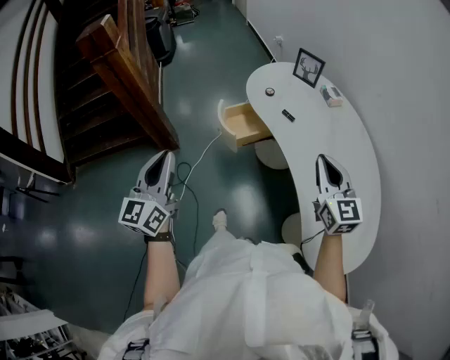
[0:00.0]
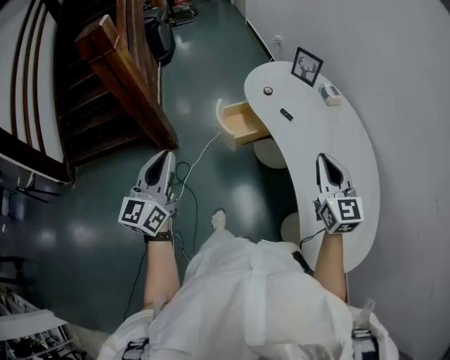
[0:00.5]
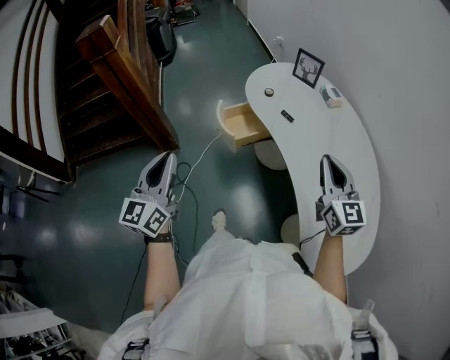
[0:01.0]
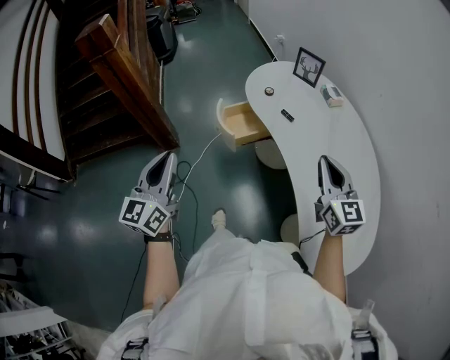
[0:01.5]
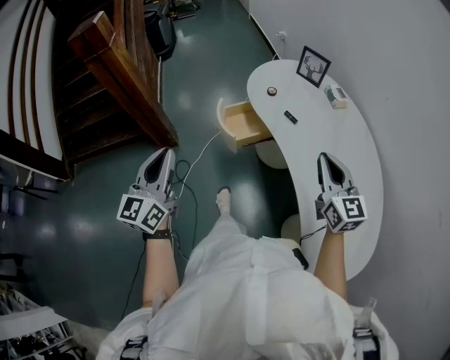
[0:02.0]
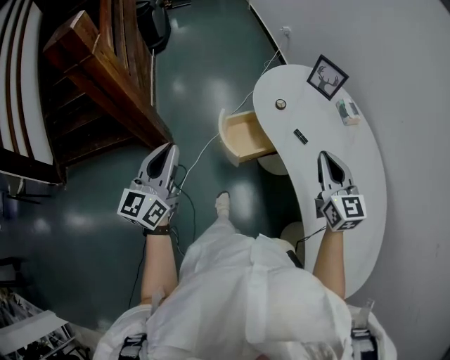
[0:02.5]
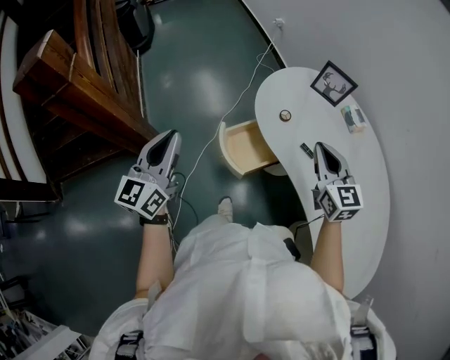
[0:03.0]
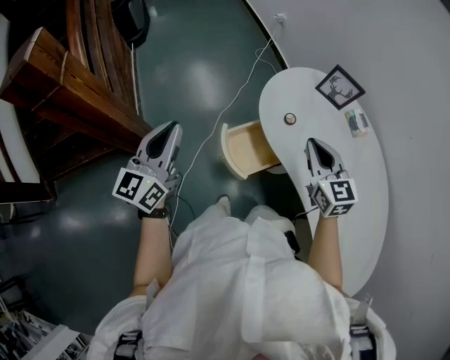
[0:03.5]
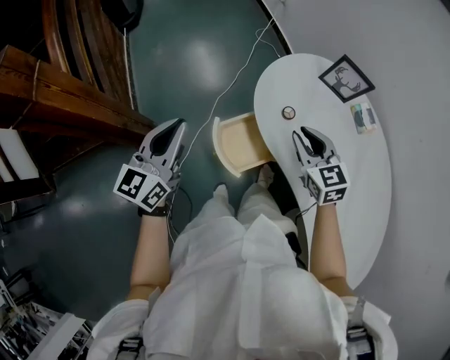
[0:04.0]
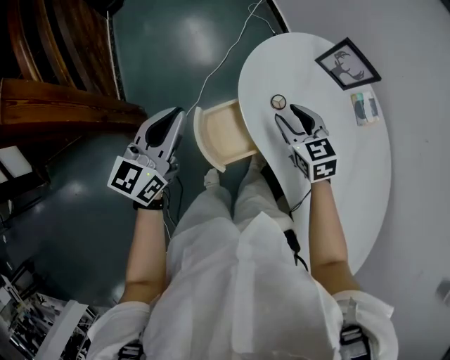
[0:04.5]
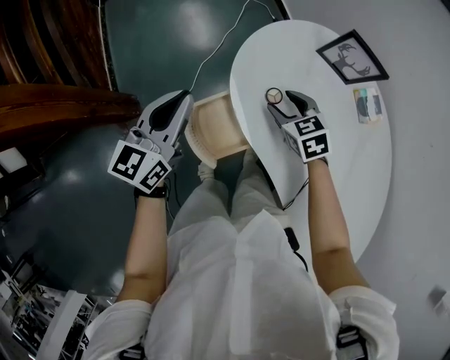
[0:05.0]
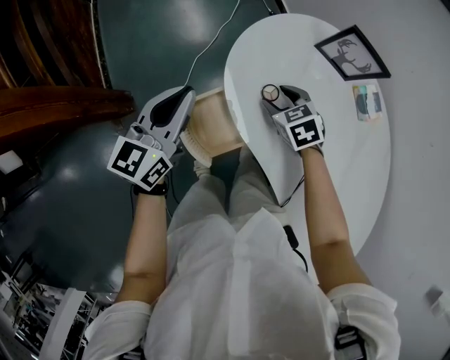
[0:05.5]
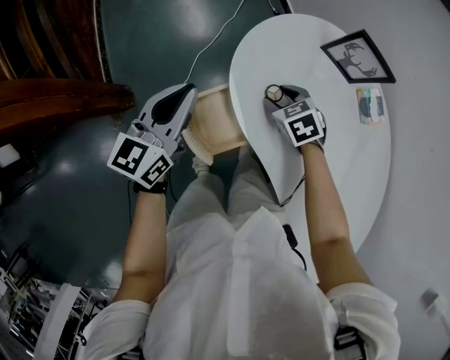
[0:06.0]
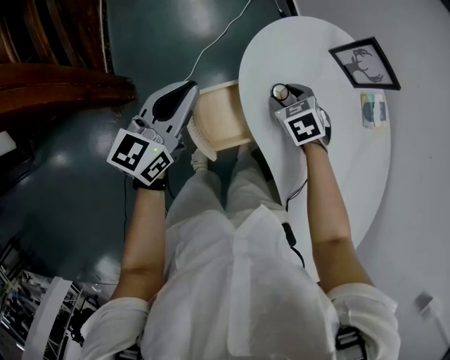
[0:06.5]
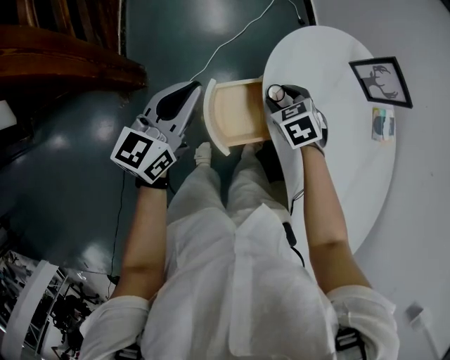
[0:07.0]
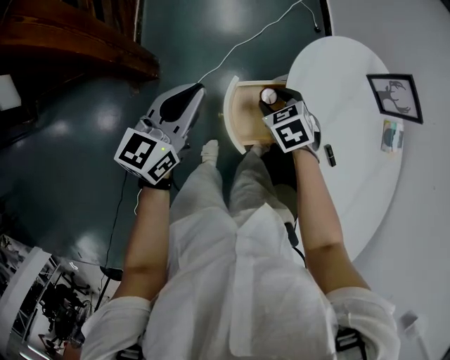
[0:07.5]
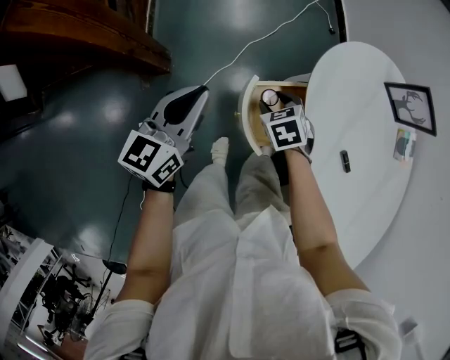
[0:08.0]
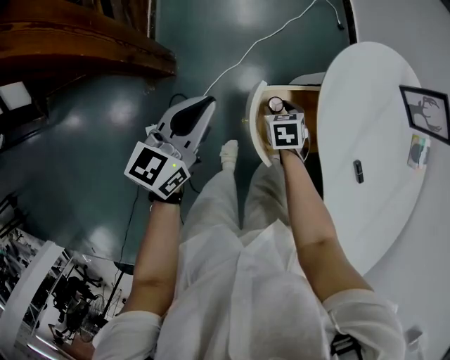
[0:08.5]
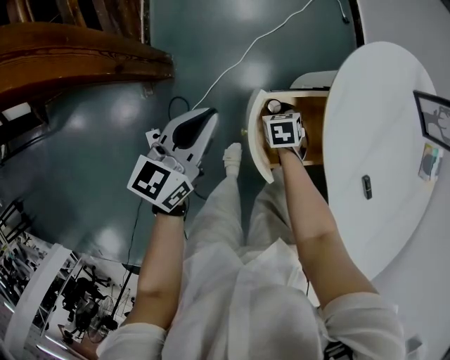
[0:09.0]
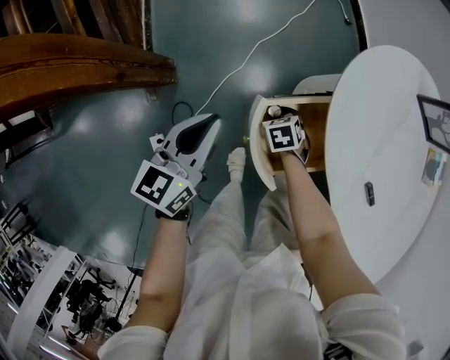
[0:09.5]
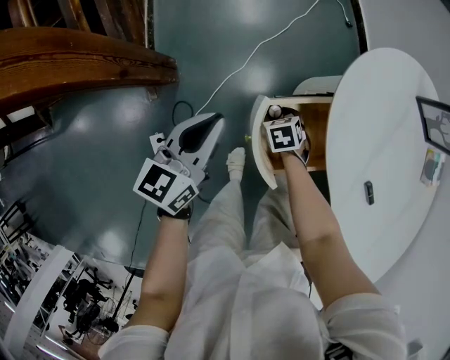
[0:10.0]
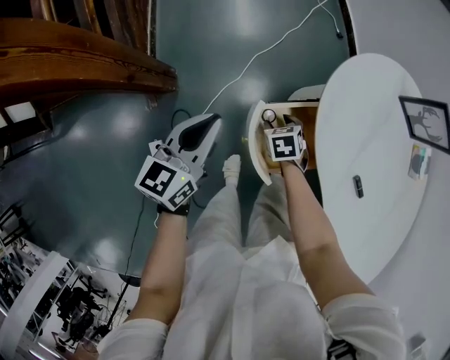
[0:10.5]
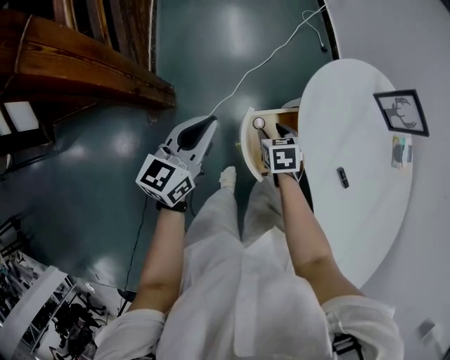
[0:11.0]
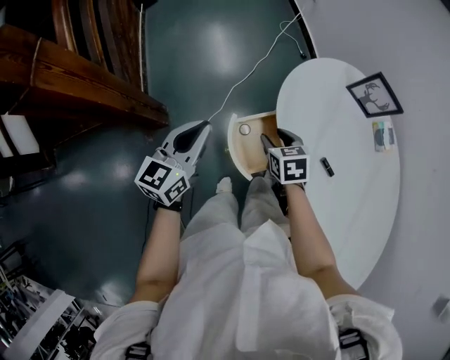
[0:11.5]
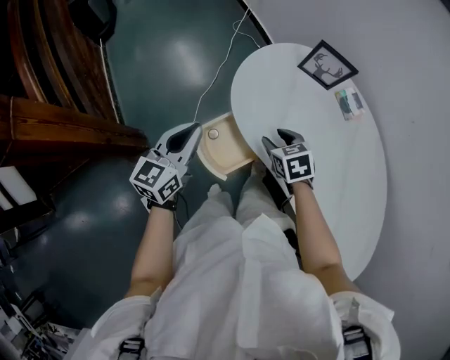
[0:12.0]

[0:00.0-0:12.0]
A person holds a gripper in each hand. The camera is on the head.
0:00.0 to 0:02.0: The right gripper ends up approximately 5 cm from where it was; the left gripper changes place by about 5 cm.
0:02.0 to 0:04.0: The left gripper is displaced forward by approximately 40 cm. The right gripper travels forward and to the left by roughly 40 cm, and swivels some 20 degrees.
0:04.0 to 0:06.0: The right gripper travels downward and forward by some 20 cm, tips its fingers downward by some 30 degrees, and opens. The left gripper moves to the right, forward and downward, some 15 cm.
0:06.0 to 0:08.0: The left gripper heads to the left and backward, covering some 20 cm; the right gripper shifts roughly 20 cm to the left.
0:08.0 to 0:10.0: The left gripper shifts about 10 cm downward; the right gripper goes roughly 20 cm downward.
0:10.0 to 0:12.0: The left gripper heads upward and to the right, covering about 20 cm, and rotates roughly 20 degrees; the right gripper goes some 35 cm upward and to the right, and turns by roughly 20 degrees.

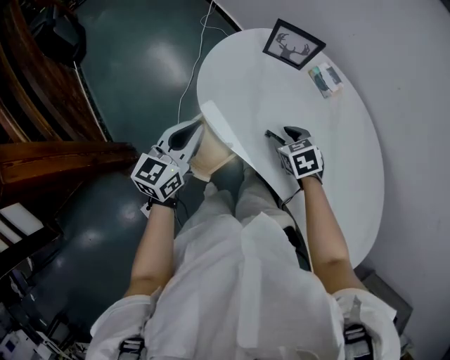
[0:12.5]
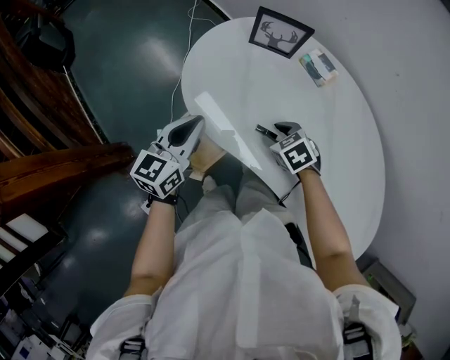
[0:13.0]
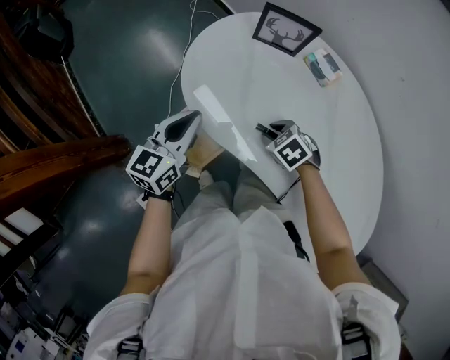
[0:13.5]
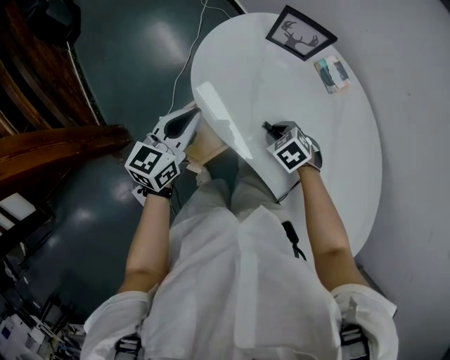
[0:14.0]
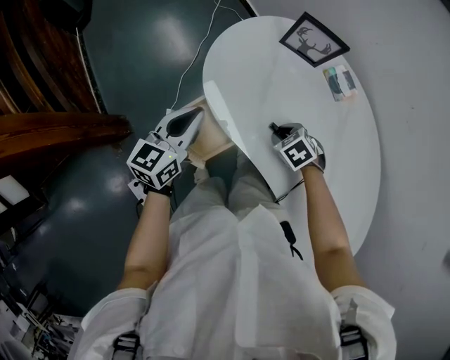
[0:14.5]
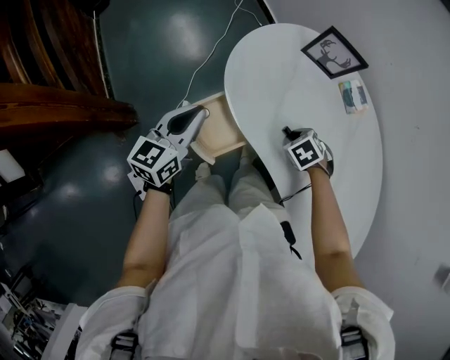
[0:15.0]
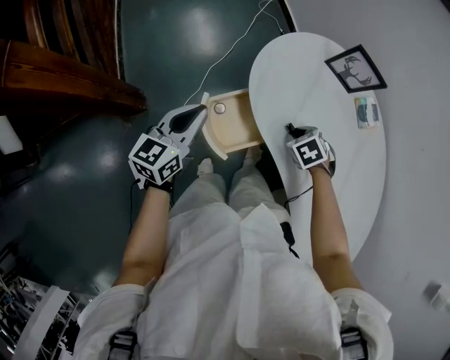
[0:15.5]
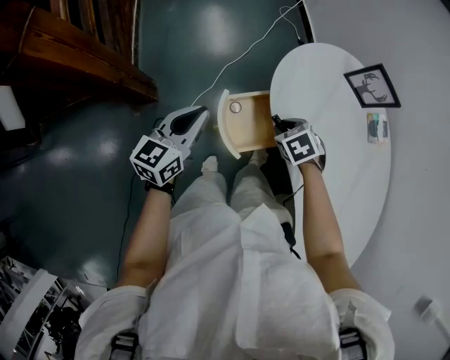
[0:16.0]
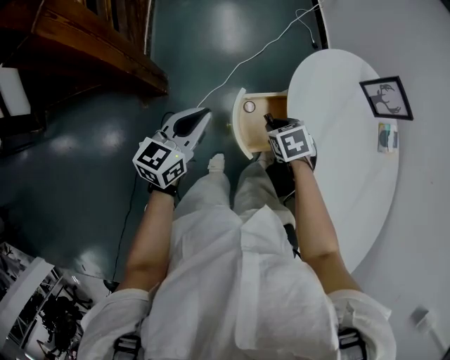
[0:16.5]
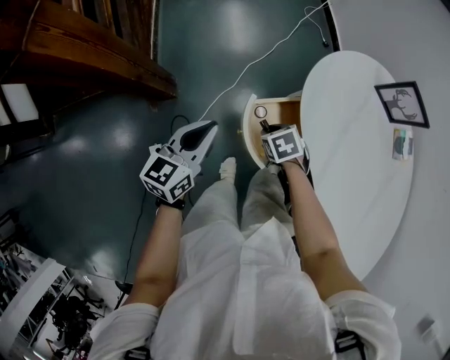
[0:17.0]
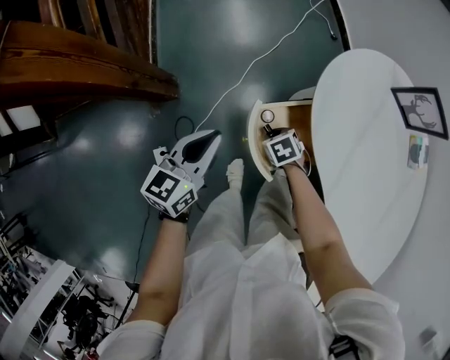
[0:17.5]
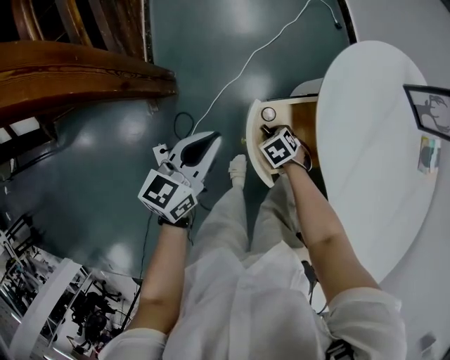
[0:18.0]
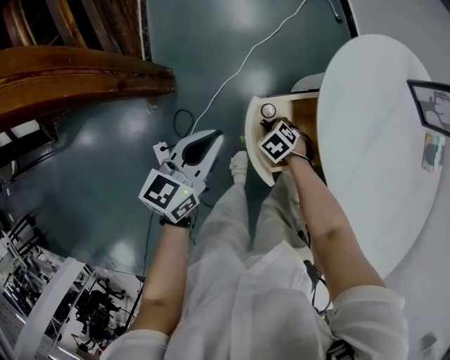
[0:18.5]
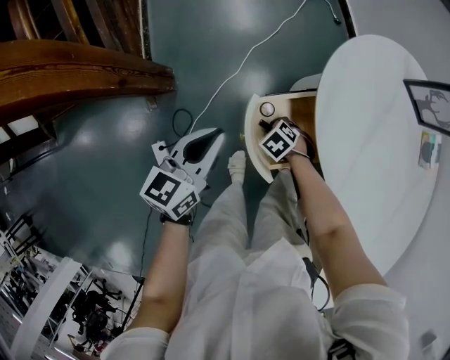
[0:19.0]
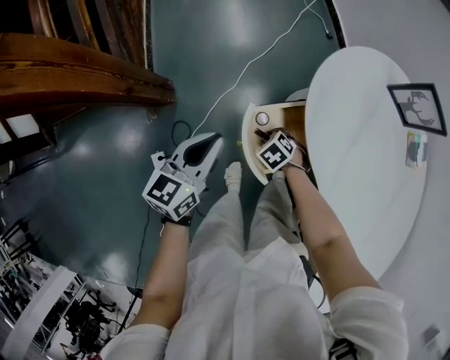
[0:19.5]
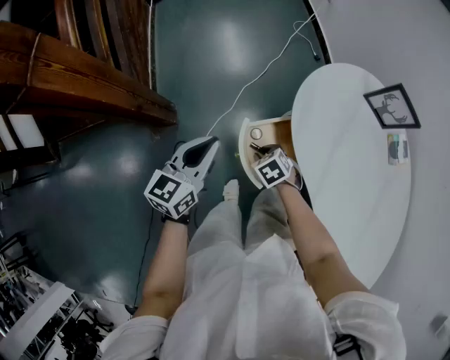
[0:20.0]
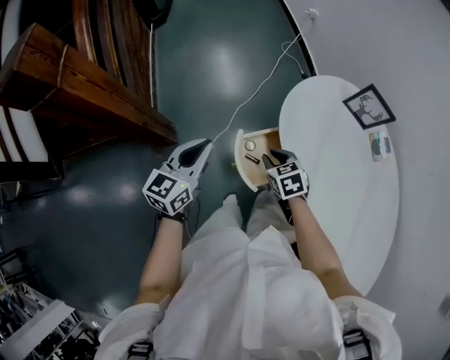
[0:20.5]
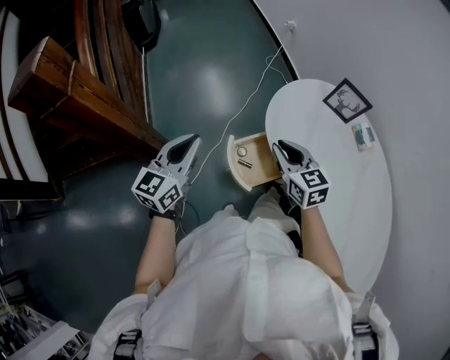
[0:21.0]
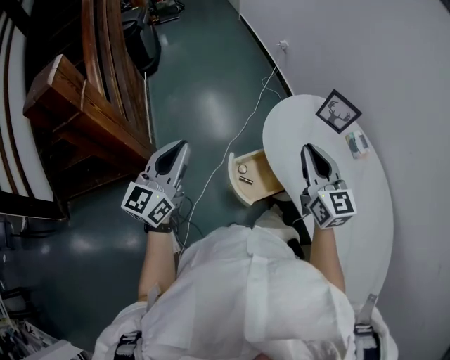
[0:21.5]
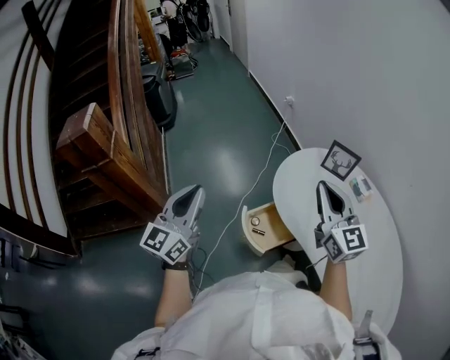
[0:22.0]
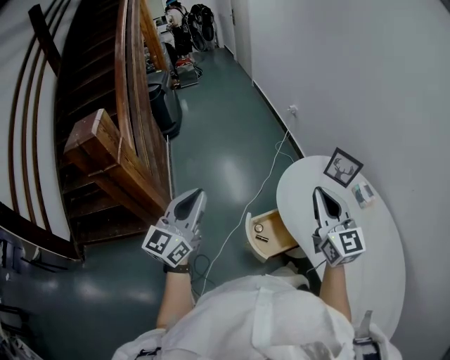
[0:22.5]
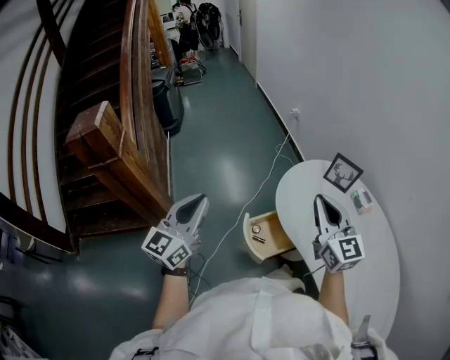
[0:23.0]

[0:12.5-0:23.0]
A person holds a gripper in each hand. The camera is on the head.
0:12.5 to 0:14.5: The right gripper travels downward by approximately 5 cm, changes its angle by some 30 degrees, and closes.
0:14.5 to 0:16.5: The right gripper ends up approximately 25 cm from where it was. The left gripper shifts by some 20 cm, and swivels about 20 degrees.
0:16.5 to 0:19.0: The left gripper travels downward by some 10 cm. The right gripper is displaced downward by about 25 cm, and changes its angle by roughly 20 degrees.
0:19.0 to 0:21.0: The left gripper is displaced upward by approximately 20 cm, and swivels roughly 20 degrees; the right gripper goes some 40 cm upward, and angles its fingers upward, by roughly 50 degrees.
0:21.0 to 0:23.0: Both grippers travel together upward, approximately 15 cm. The right gripper turns by approximately 30 degrees.

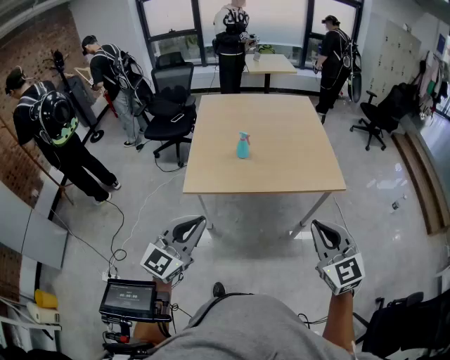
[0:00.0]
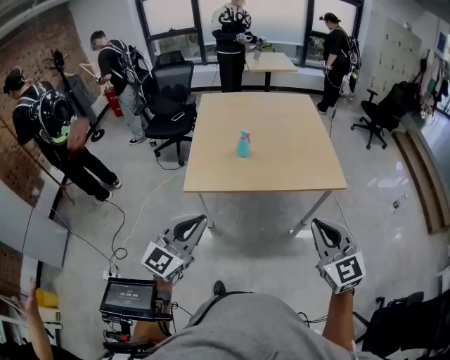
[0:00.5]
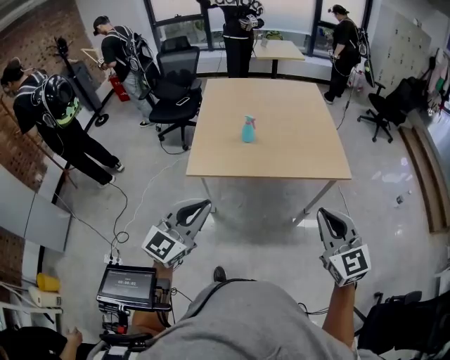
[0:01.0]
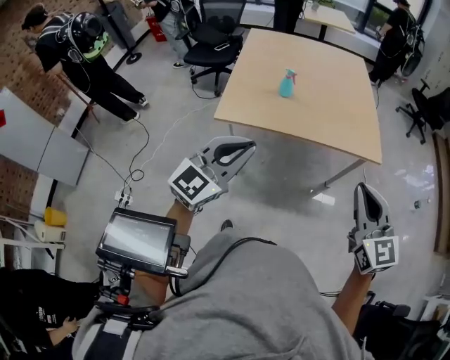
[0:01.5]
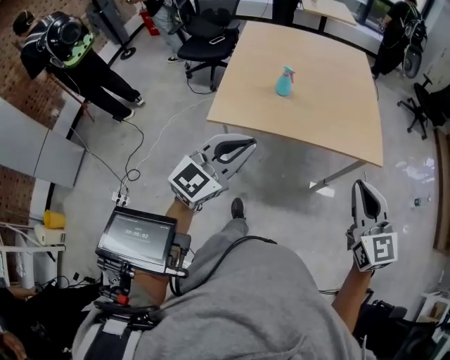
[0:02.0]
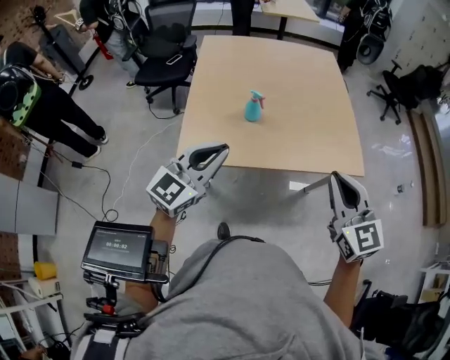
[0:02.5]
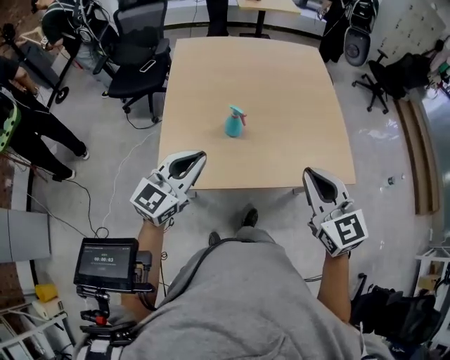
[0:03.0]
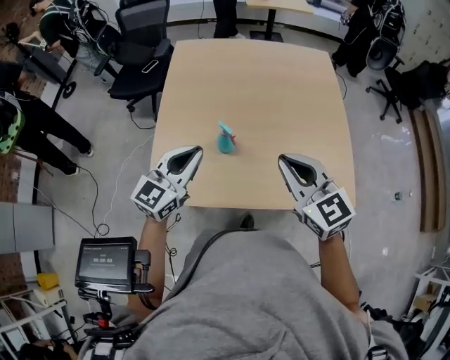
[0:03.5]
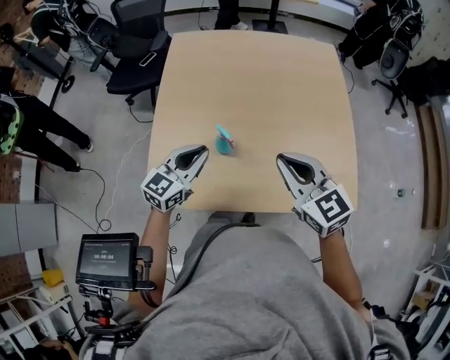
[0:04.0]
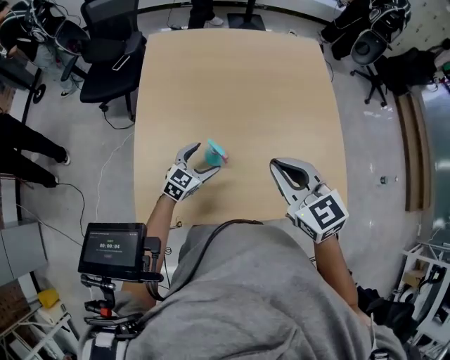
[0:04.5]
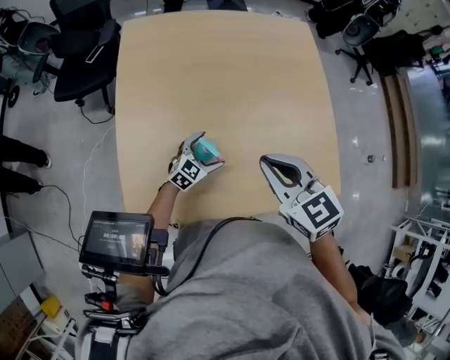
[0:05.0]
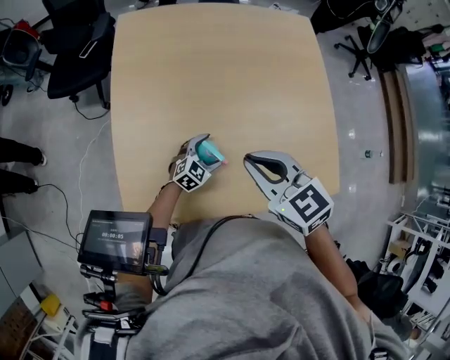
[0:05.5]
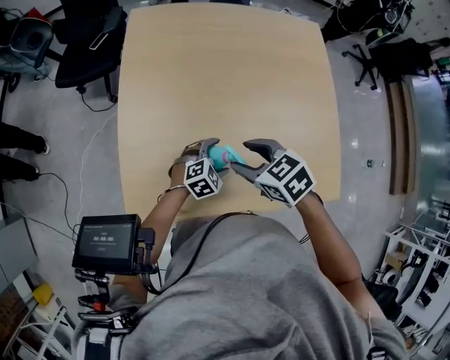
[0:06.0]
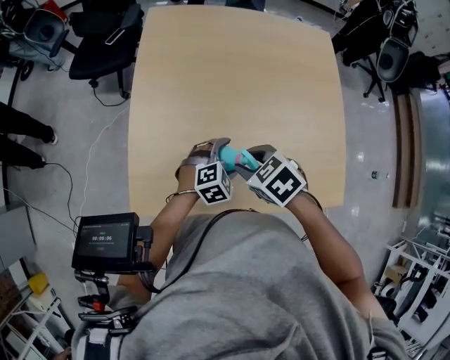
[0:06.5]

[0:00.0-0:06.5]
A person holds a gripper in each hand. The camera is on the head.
0:00.0 to 0:02.0: Both grippers move forward, roughly 10 cm.
0:02.0 to 0:04.5: Both grippers are carried forward, approximately 50 cm. The left gripper moves downward, roughly 30 cm, rotates about 30 degrees, and opens.
0:04.5 to 0:06.5: The right gripper goes roughly 15 cm downward and to the left, points its fingers some 40 degrees further downward, and opens up. Meanwhile the left gripper travels to the right by some 5 cm, moves approximately 10 cm downward and comes back, and swivels approximately 30 degrees.
